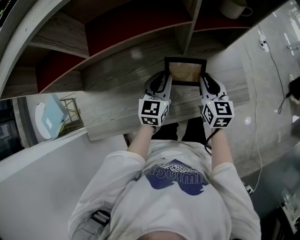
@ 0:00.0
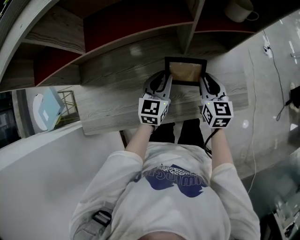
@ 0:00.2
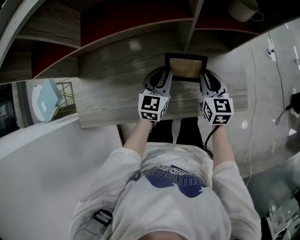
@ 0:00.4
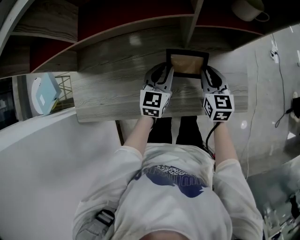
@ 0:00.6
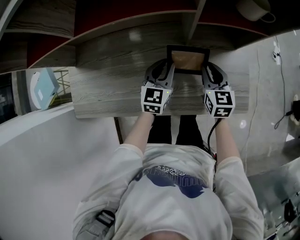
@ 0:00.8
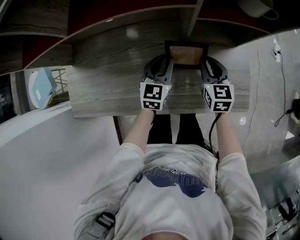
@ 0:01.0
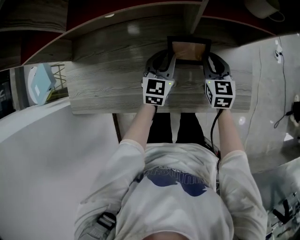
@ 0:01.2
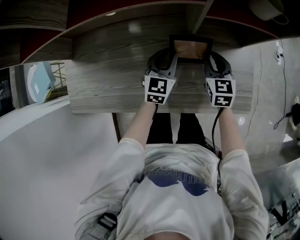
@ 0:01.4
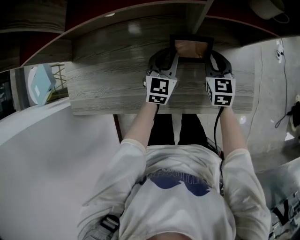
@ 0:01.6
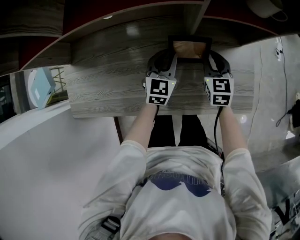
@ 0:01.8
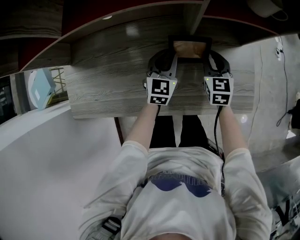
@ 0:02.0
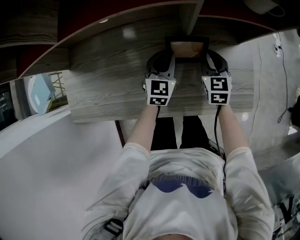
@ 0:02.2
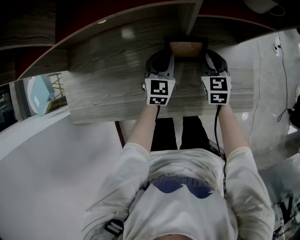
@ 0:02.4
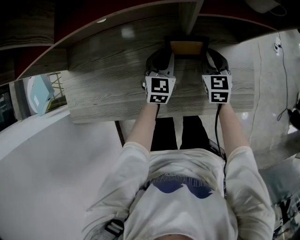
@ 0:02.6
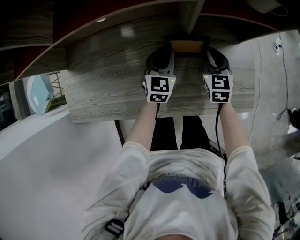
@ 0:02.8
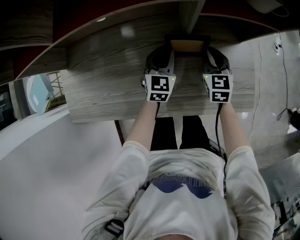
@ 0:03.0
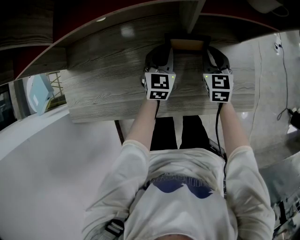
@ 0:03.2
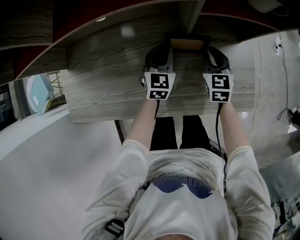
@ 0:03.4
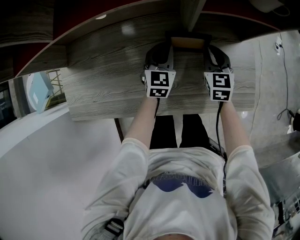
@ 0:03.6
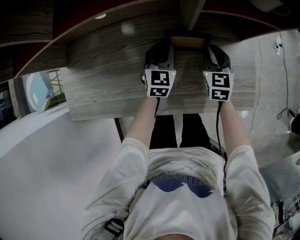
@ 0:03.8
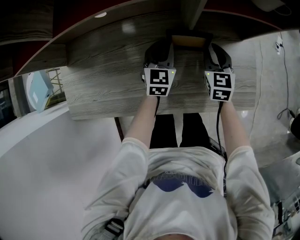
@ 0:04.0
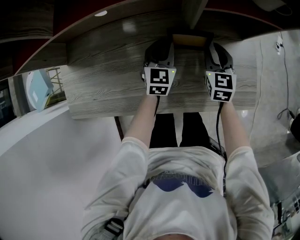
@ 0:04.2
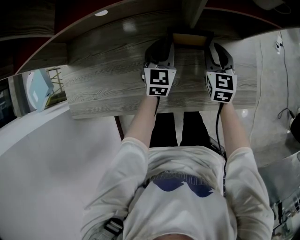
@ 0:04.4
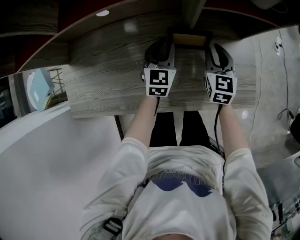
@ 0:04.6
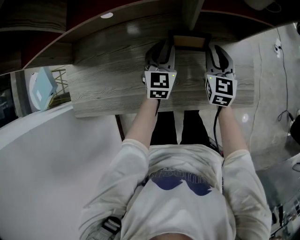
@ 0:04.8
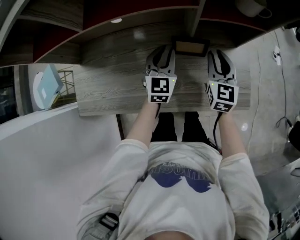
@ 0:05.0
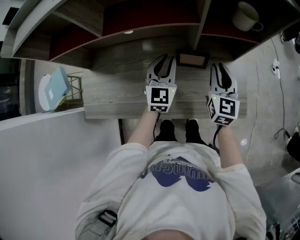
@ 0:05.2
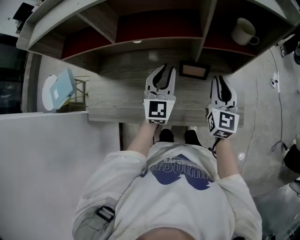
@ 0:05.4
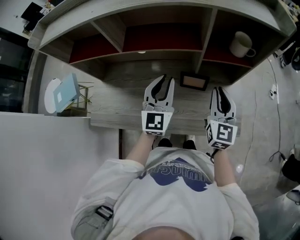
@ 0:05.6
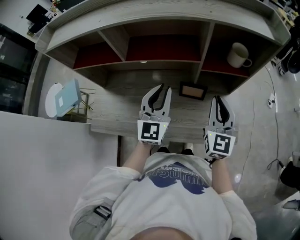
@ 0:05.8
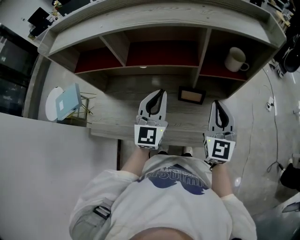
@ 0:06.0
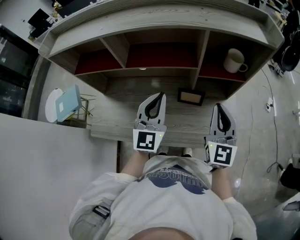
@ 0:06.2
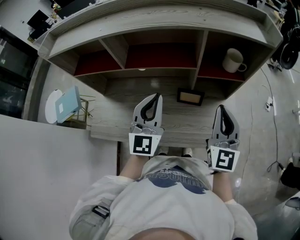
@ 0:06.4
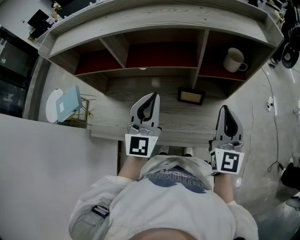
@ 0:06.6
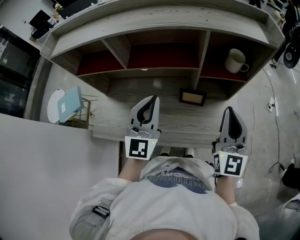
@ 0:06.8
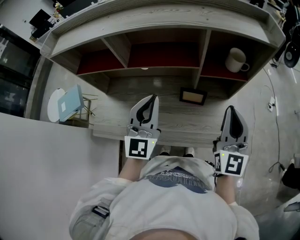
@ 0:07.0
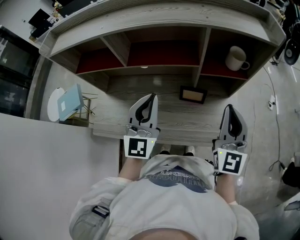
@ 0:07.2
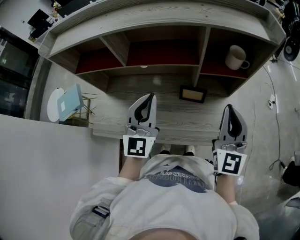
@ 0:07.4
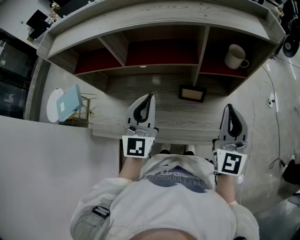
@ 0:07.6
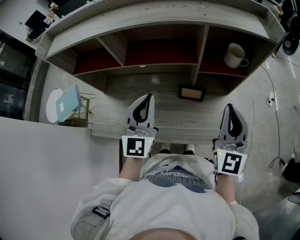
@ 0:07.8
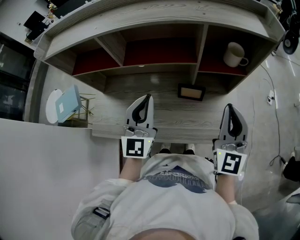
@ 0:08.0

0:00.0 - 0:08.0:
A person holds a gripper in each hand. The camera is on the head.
0:00.0 - 0:01.6: The left gripper moves downward, some 10 cm. The right gripper goes roughly 10 cm downward and forward, and swivels approximately 20 degrees.
0:01.6 - 0:03.2: There are only small adjustments of the grippers.
0:03.2 - 0:04.8: Both grippers travel together upward, roughly 5 cm.
0:04.8 - 0:06.4: The grippers both shift upward by some 30 cm. The left gripper turns by approximately 30 degrees. The right gripper swivels about 30 degrees, and closes.
0:06.4 - 0:08.0: There are only small adjustments of the grippers.

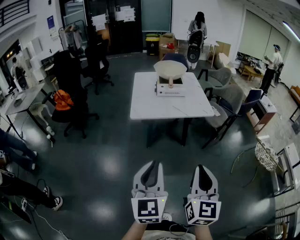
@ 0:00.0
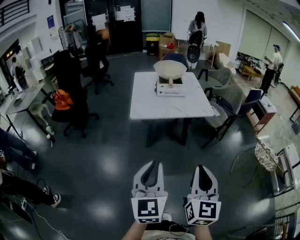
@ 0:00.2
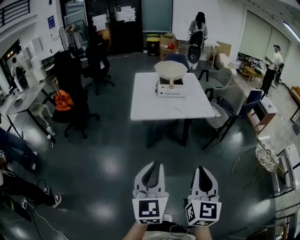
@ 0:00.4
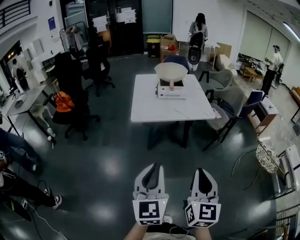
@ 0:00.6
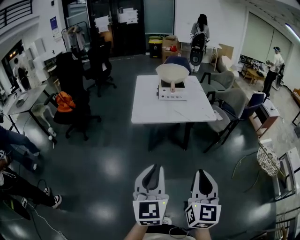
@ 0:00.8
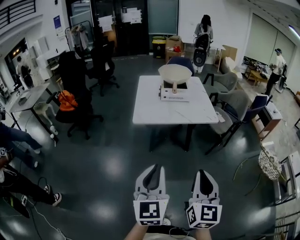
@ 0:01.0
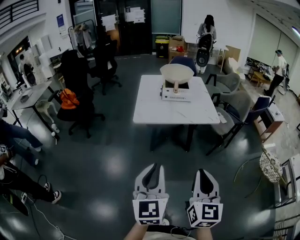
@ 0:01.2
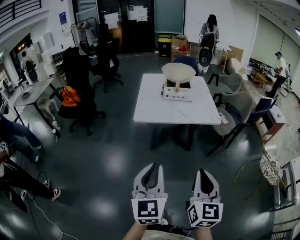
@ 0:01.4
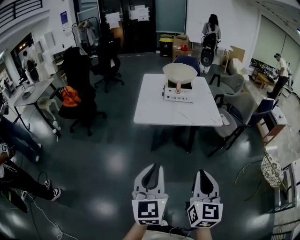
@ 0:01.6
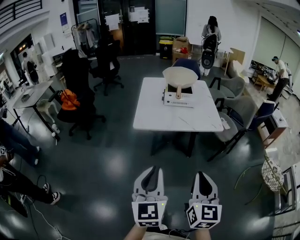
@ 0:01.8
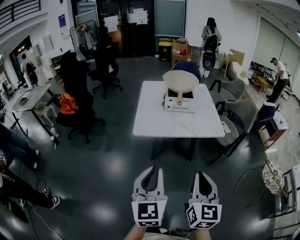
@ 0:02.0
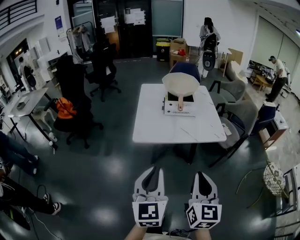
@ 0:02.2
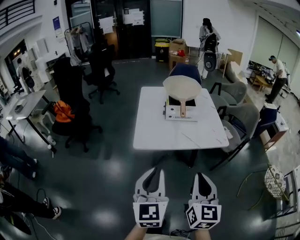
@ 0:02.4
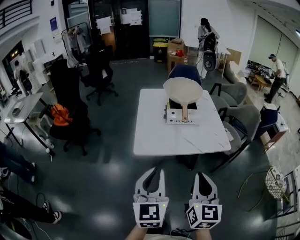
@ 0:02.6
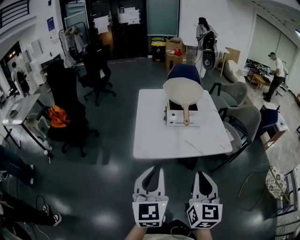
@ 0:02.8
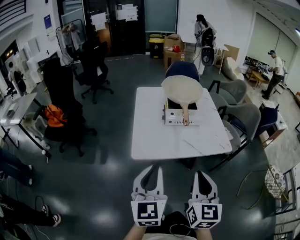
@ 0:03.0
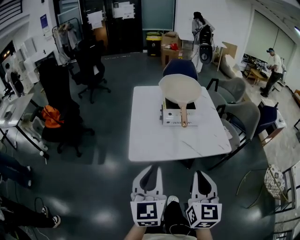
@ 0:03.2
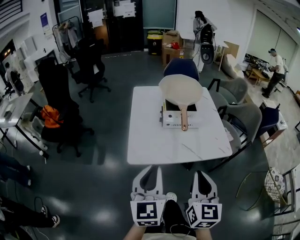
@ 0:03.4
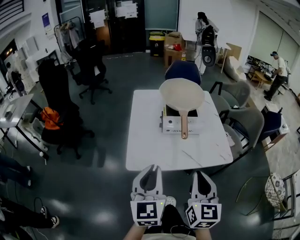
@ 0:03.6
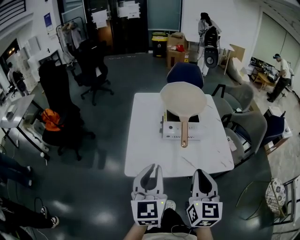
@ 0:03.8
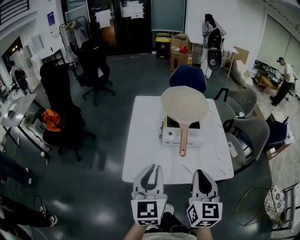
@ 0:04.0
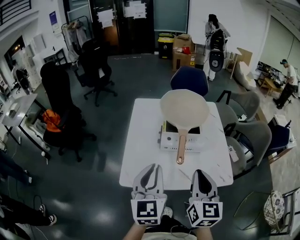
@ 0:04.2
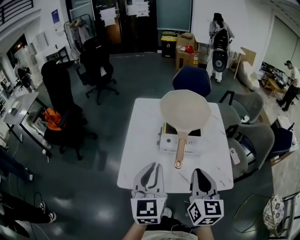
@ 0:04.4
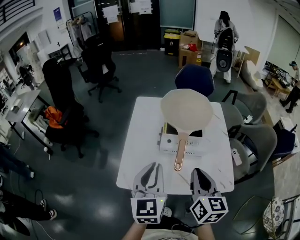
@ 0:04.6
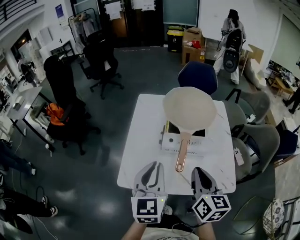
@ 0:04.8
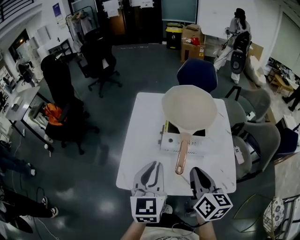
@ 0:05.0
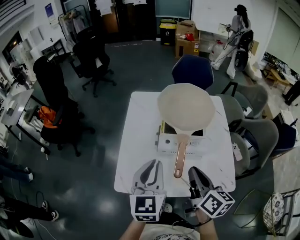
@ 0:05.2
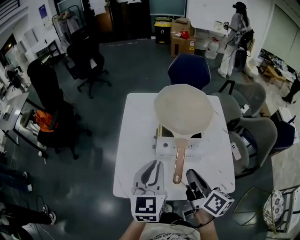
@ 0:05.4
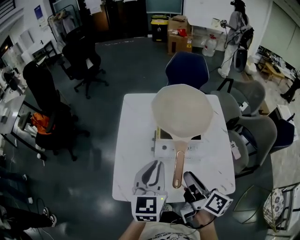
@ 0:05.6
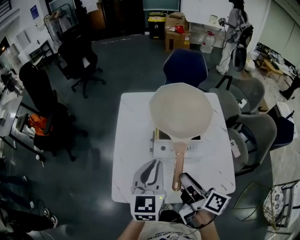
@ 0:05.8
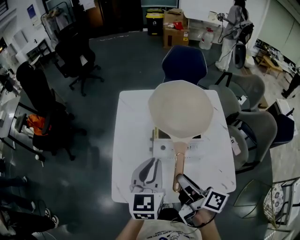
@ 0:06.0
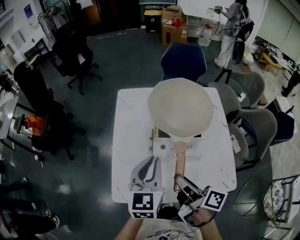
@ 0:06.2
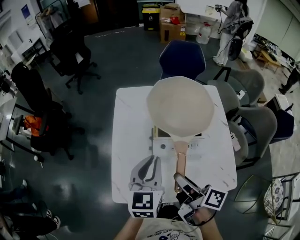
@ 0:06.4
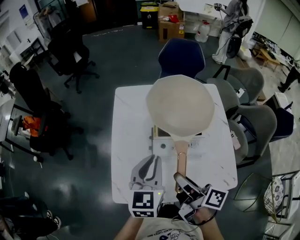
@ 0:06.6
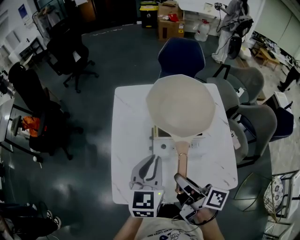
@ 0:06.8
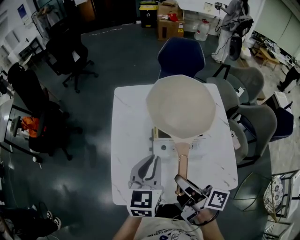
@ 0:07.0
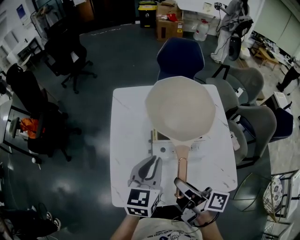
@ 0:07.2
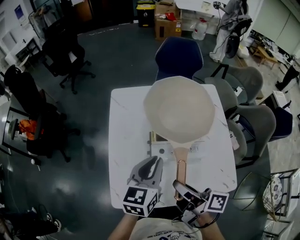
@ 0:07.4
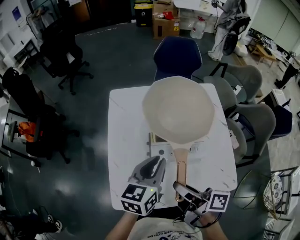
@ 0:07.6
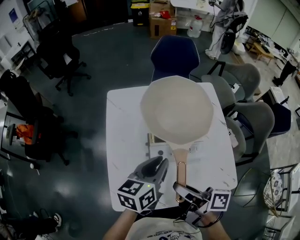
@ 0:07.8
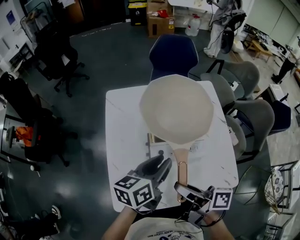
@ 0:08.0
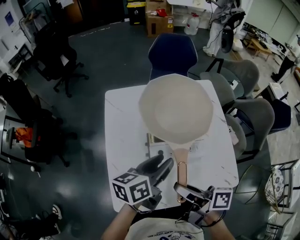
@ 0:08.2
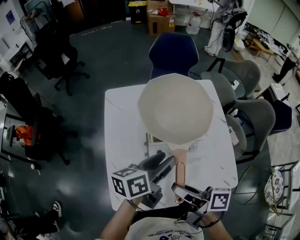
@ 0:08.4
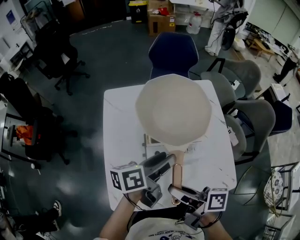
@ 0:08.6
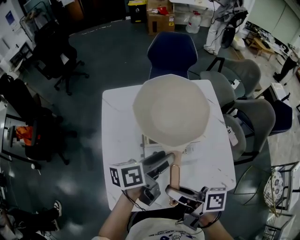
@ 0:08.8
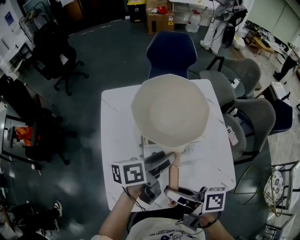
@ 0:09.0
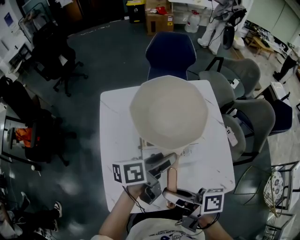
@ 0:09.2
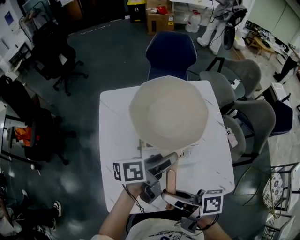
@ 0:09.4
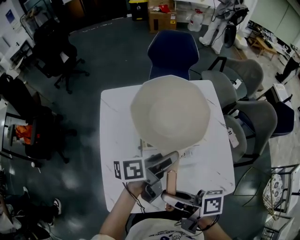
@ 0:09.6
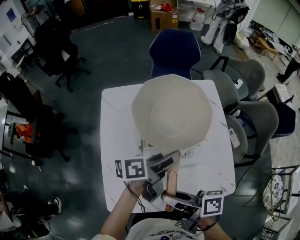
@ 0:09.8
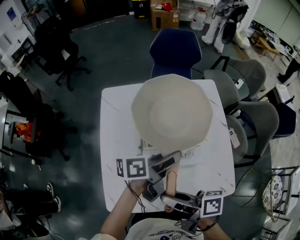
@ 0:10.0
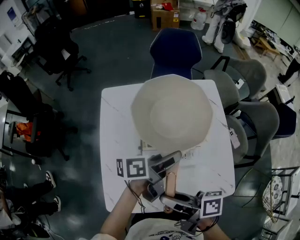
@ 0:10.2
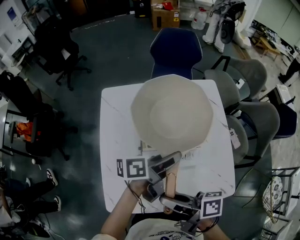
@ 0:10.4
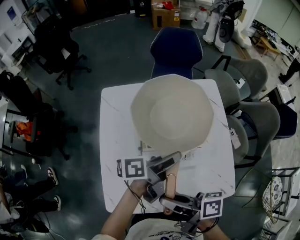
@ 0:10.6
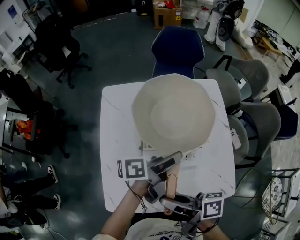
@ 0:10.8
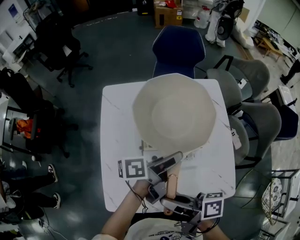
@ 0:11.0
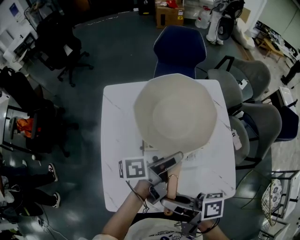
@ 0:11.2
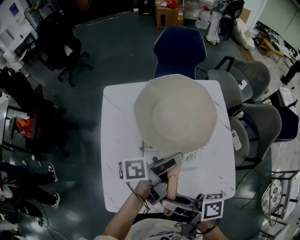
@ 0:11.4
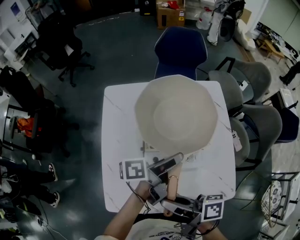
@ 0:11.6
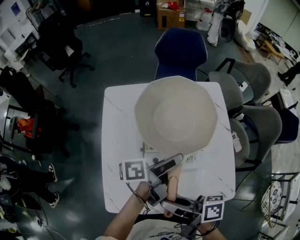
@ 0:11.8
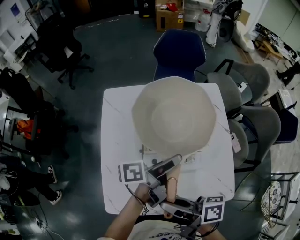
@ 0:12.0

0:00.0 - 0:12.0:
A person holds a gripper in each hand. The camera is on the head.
0:00.0 - 0:01.6: Both grippers move forward, some 5 cm.
0:01.6 - 0:03.0: The grippers both shift forward by roughly 25 cm.
0:03.0 - 0:04.4: Both grippers travel together forward, roughly 25 cm.
0:04.4 - 0:06.0: The two grippers go roughly 15 cm forward and downward. The right gripper rolls clockwise, seen from behind, by roughly 60 degrees, and opens up.
0:06.0 - 0:07.6: The left gripper ends up approximately 5 cm from where it was, and turns by some 20 degrees.
0:07.6 - 0:09.0: The left gripper goes roughly 5 cm to the right, changes its angle by some 40 degrees, and opens its fingers.
0:09.0 - 0:10.4: The grippers stay close to where they were, moving slightly.
0:10.4 - 0:12.0: The grippers move only a little.

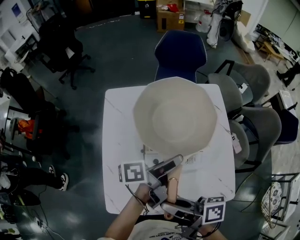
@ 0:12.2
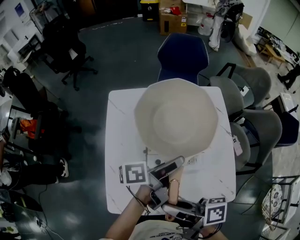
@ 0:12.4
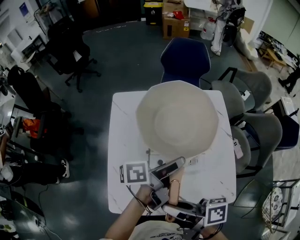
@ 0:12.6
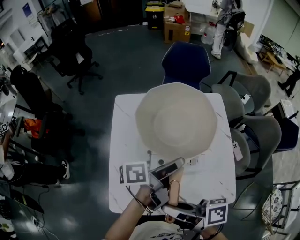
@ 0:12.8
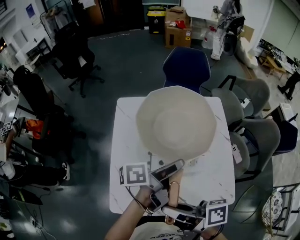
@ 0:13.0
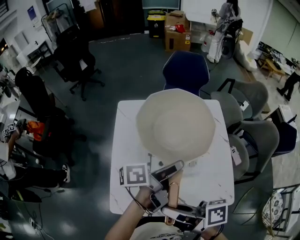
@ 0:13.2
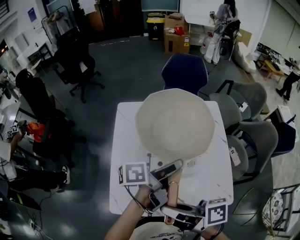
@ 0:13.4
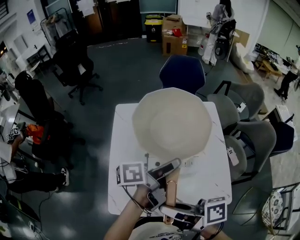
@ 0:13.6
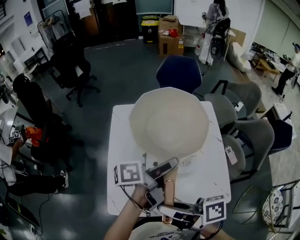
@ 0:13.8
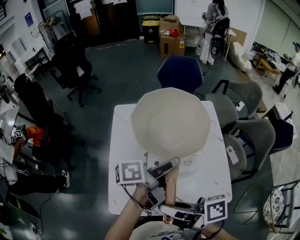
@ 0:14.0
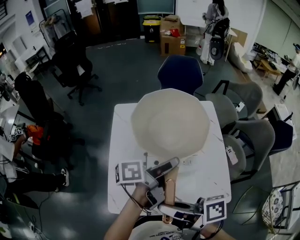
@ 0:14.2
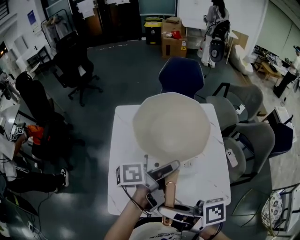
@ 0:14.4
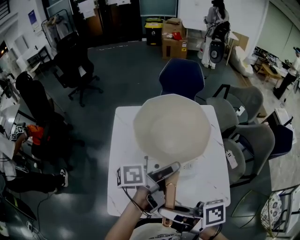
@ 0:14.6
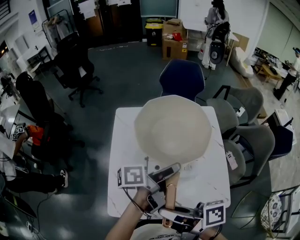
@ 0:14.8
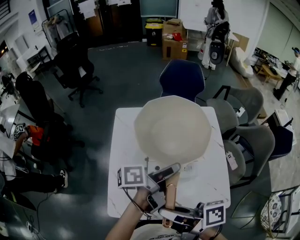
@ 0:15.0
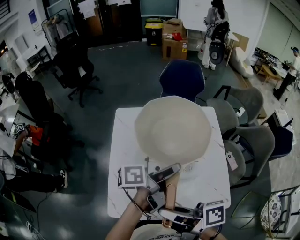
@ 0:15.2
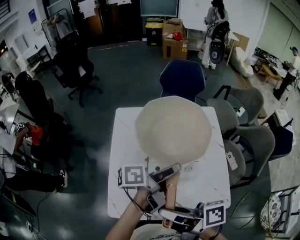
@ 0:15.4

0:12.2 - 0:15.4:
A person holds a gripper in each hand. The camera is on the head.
0:12.2 - 0:13.8: The grippers both shift upward by approximately 5 cm.
0:13.8 - 0:15.4: Neither gripper changes place.
